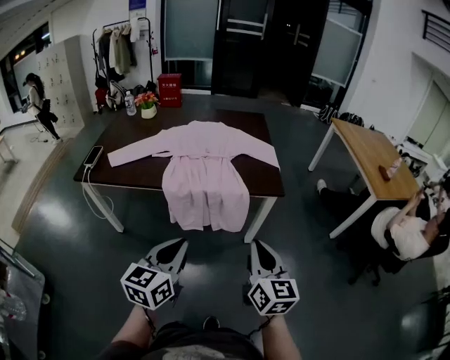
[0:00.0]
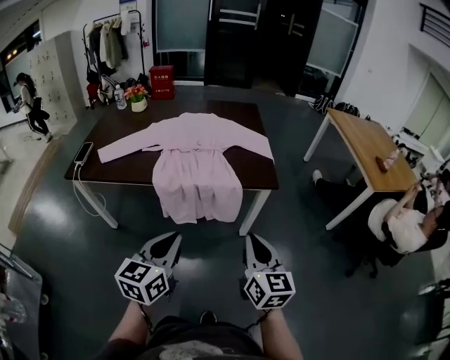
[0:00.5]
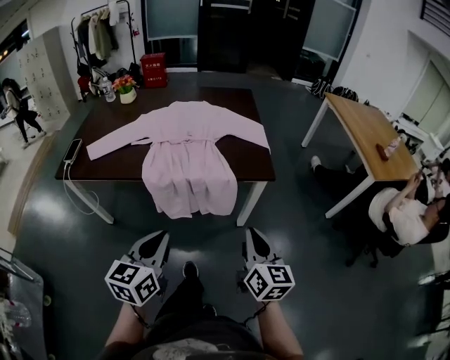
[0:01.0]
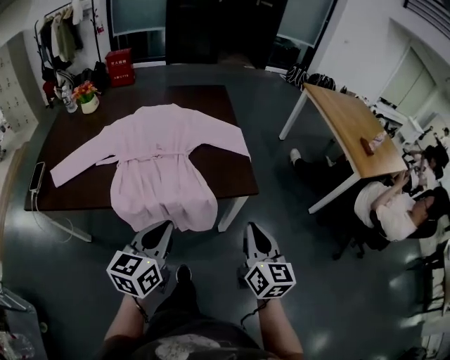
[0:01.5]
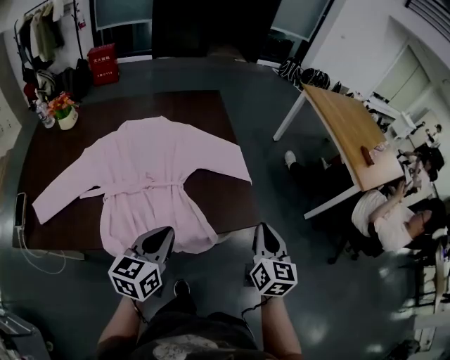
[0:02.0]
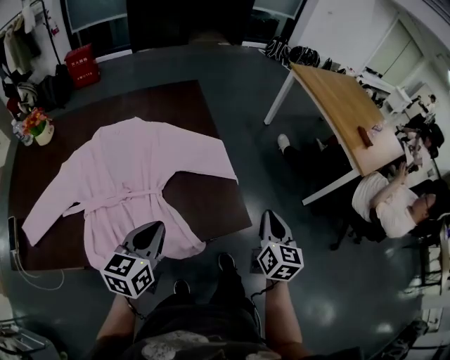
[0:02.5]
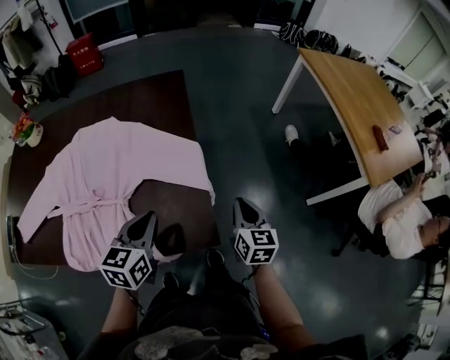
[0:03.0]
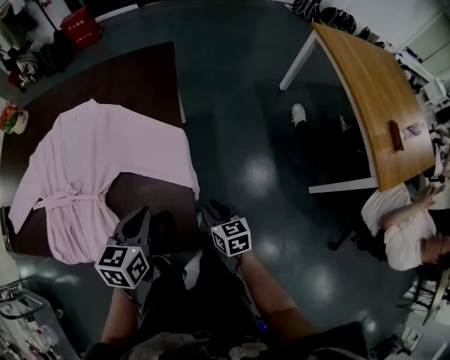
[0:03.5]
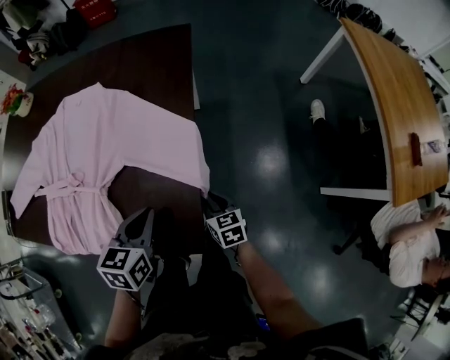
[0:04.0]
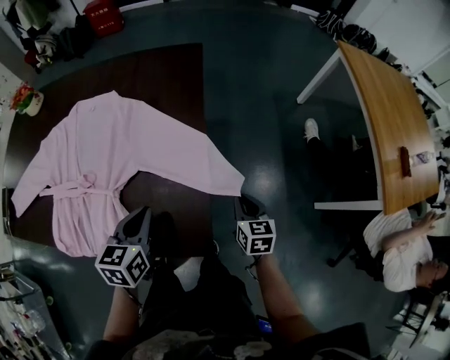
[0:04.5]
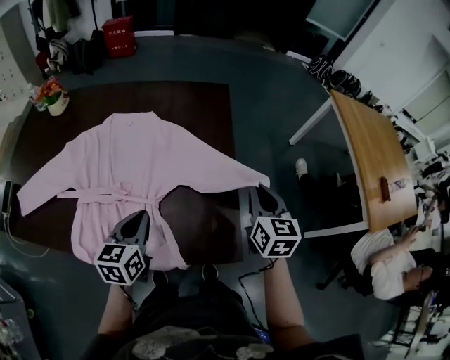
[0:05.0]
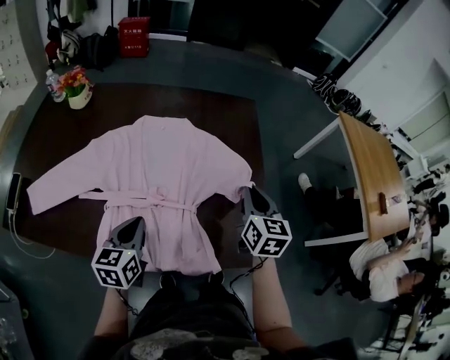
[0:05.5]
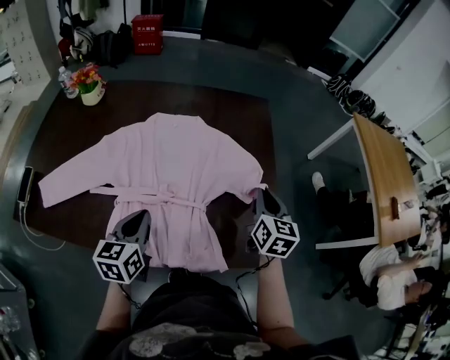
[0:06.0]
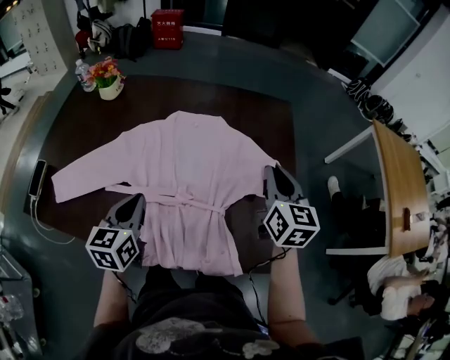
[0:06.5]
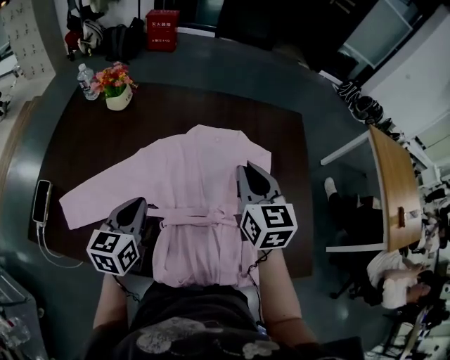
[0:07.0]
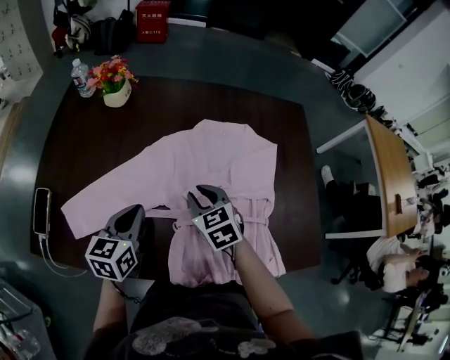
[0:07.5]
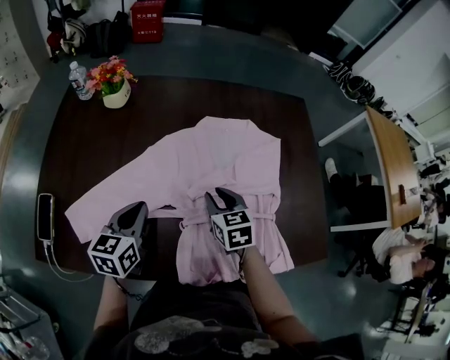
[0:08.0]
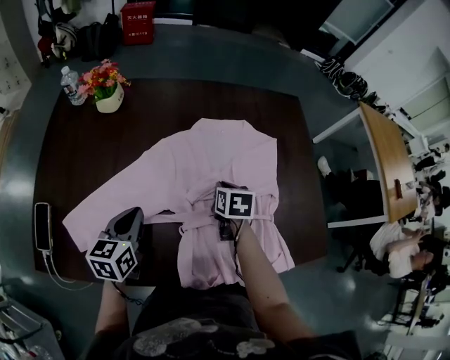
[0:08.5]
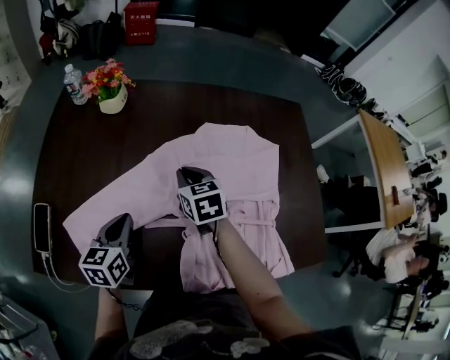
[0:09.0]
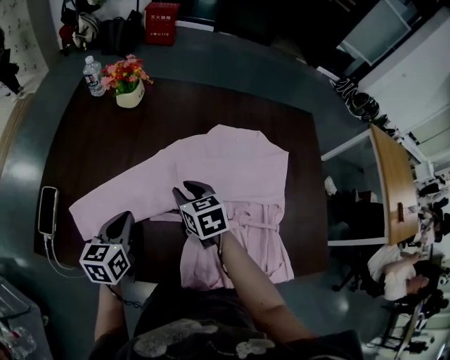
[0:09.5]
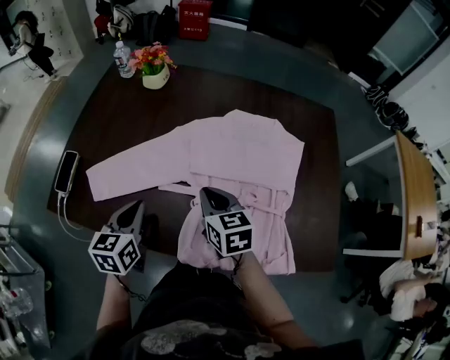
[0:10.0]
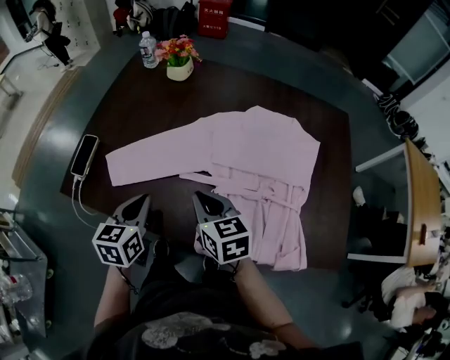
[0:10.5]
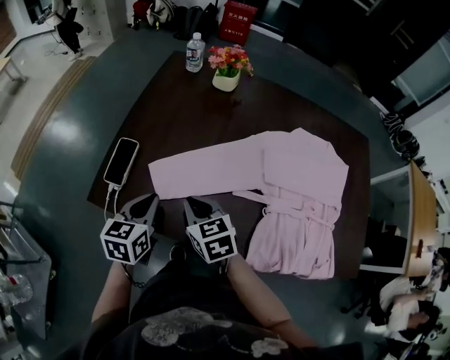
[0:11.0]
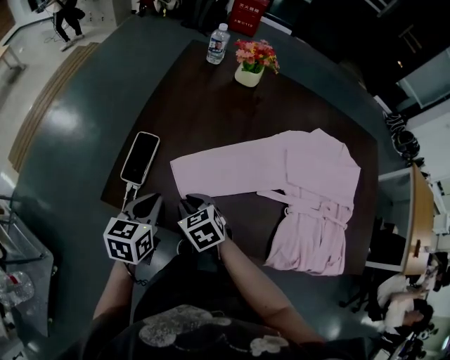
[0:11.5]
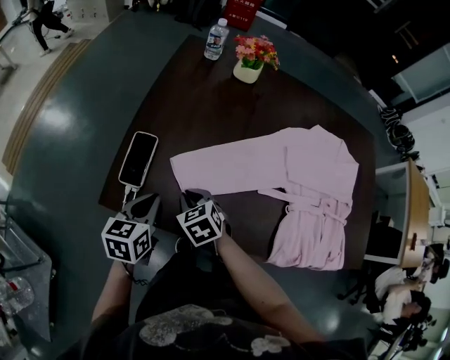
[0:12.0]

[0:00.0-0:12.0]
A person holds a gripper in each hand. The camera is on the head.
0:00.0 to 0:02.0: Both grippers move forward, approximately 35 cm. The right gripper swivels roughly 20 degrees.
0:02.0 to 0:04.0: The right gripper travels downward by roughly 30 cm, changes its angle by about 50 degrees, and opens up. The left gripper shifts by roughly 30 cm, and turns by some 30 degrees.
0:04.0 to 0:06.0: The right gripper shifts some 30 cm upward and to the left, and rotates about 30 degrees. The left gripper travels to the left by about 35 cm.
0:06.0 to 0:08.0: The left gripper goes roughly 25 cm to the left. Meanwhile the right gripper heads to the left, covering approximately 35 cm, changes its angle by approximately 30 degrees, and opens up.
0:08.0 to 0:10.0: The right gripper moves left and right over approximately 20 cm, changing direction 2 times, and closes up. Meanwhile the left gripper is displaced backward by roughly 10 cm.
0:10.0 to 0:12.0: Both grippers travel together to the left, about 35 cm. The right gripper swivels approximately 30 degrees.

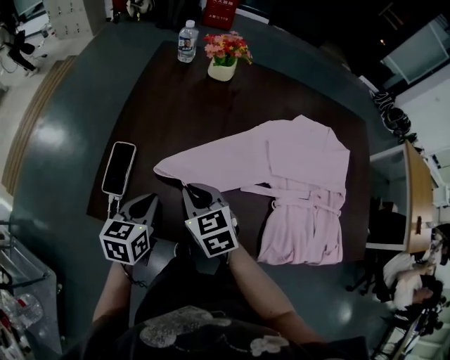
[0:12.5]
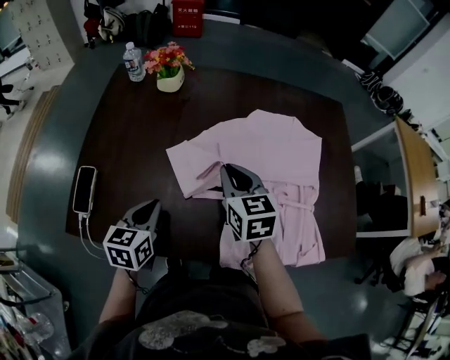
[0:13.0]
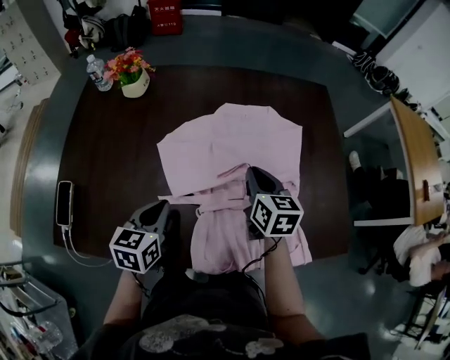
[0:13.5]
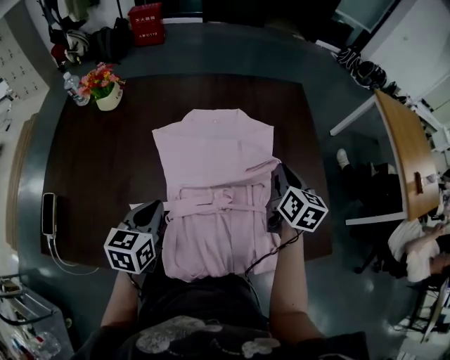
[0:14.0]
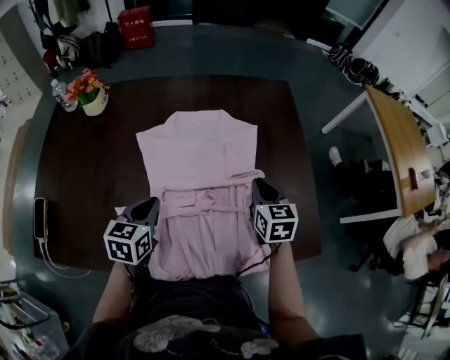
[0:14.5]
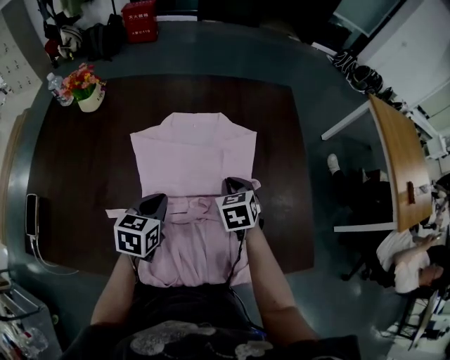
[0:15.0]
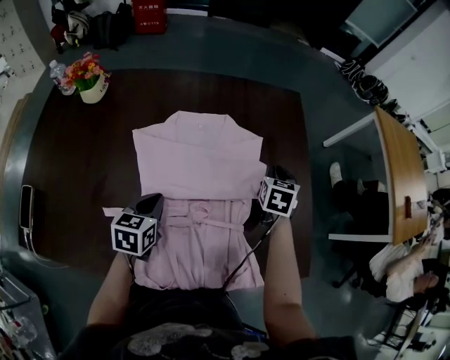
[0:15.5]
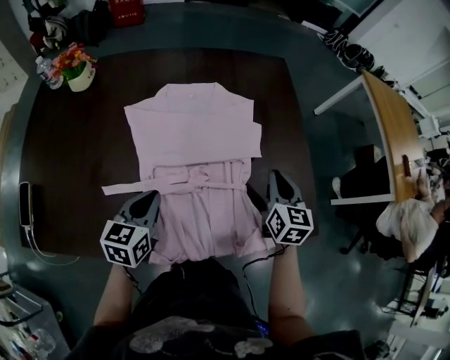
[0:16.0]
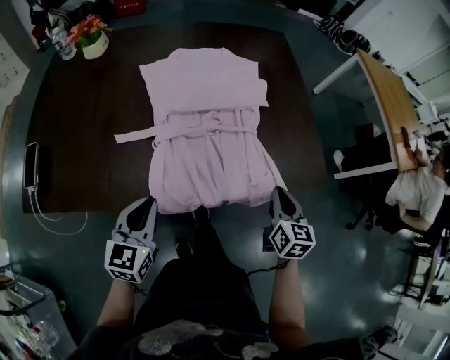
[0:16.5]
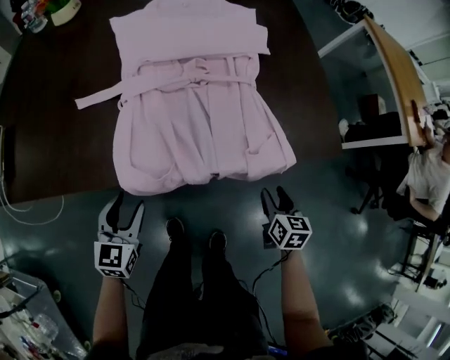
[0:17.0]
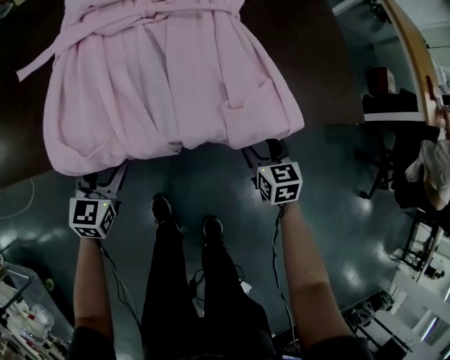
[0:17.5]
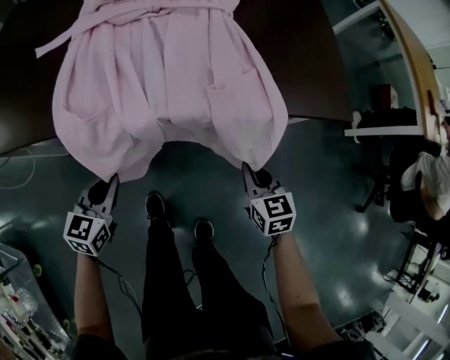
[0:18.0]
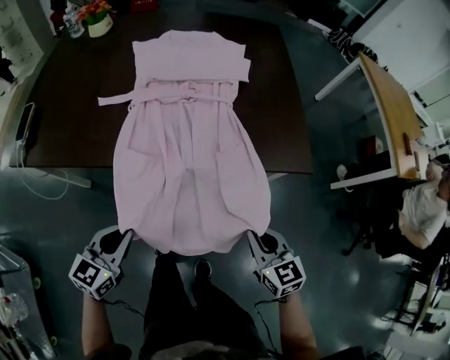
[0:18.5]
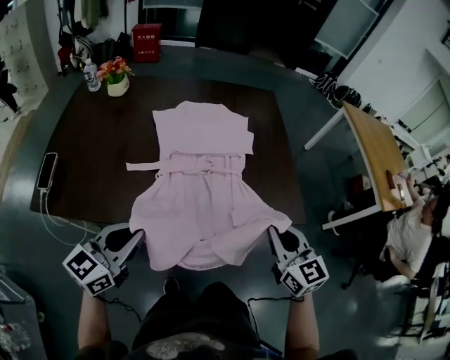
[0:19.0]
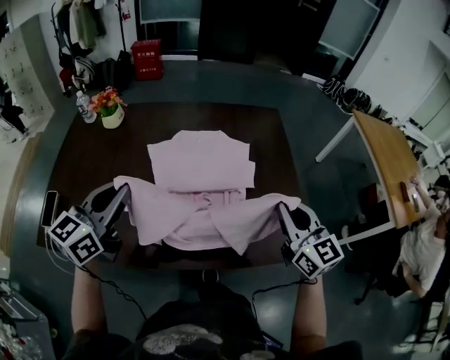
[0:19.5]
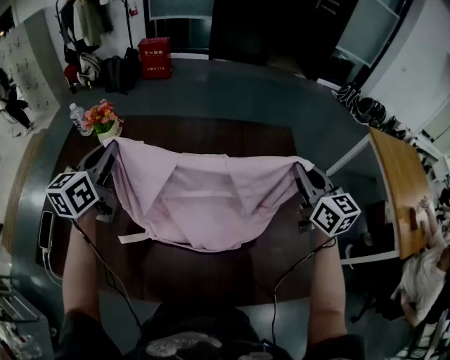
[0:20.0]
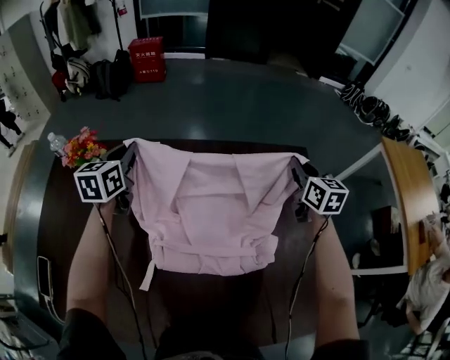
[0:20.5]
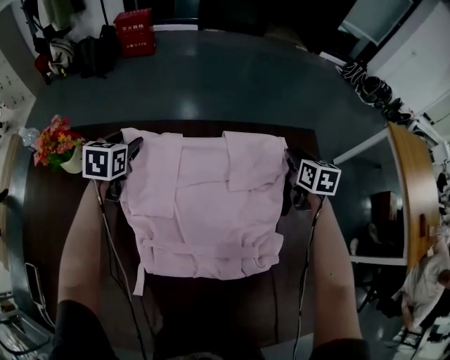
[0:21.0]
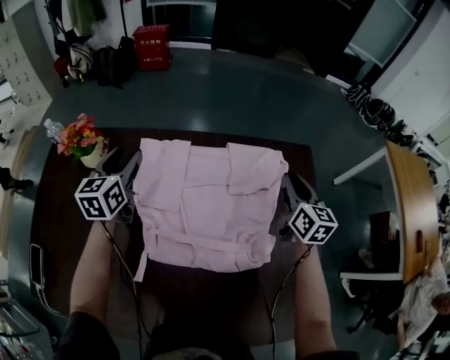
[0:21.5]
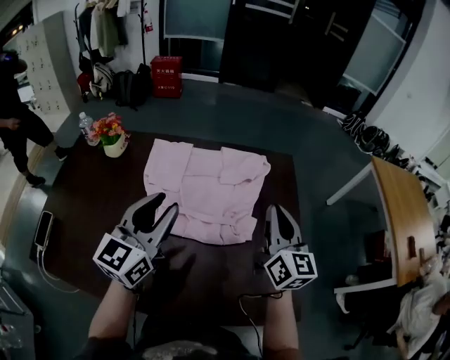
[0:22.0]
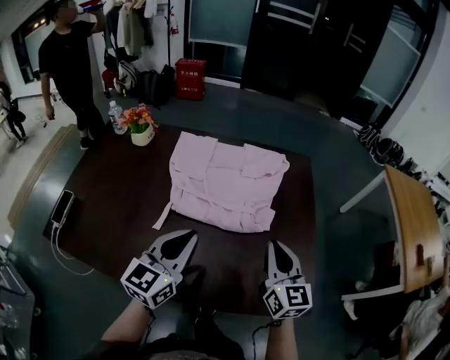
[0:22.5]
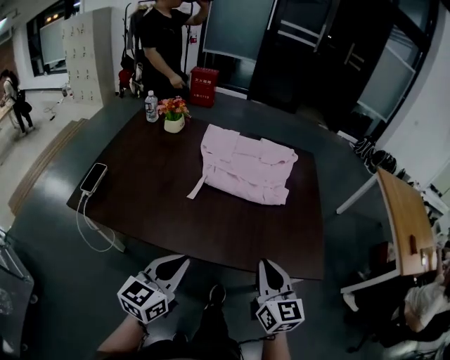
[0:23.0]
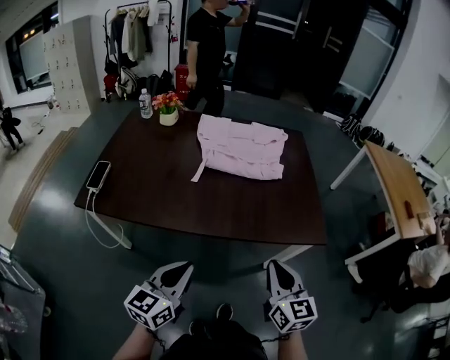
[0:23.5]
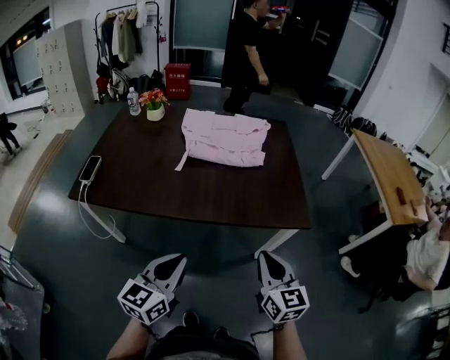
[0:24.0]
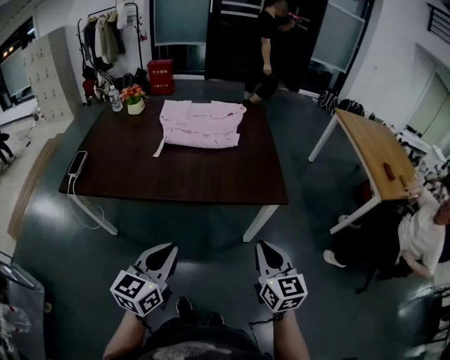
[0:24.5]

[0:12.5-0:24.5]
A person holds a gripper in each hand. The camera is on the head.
0:12.5 to 0:14.5: The pair of grippers is taken about 50 cm. The right gripper changes its angle by some 40 degrees.
0:14.5 to 0:16.5: The grippers both shift backward by about 25 cm.
0:16.5 to 0:18.5: The right gripper moves backward, roughly 20 cm, reaches about 30 cm downward, then returns, changes its angle by approximately 30 degrees, and opens, then closes once more. Meanwhile the left gripper travels backward and to the right by roughly 20 cm, moves roughly 25 cm downward and comes back, and opens and closes again.
0:18.5 to 0:20.5: The two grippers travel together, forward, about 80 cm. The left gripper swivels roughly 20 degrees. Meanwhile the right gripper swivels about 20 degrees.
0:20.5 to 0:22.5: Both grippers are carried backward, about 40 cm. The left gripper opens, then closes once more. The right gripper opens and closes again.
0:22.5 to 0:24.5: The pair of grippers is taken backward, approximately 50 cm.

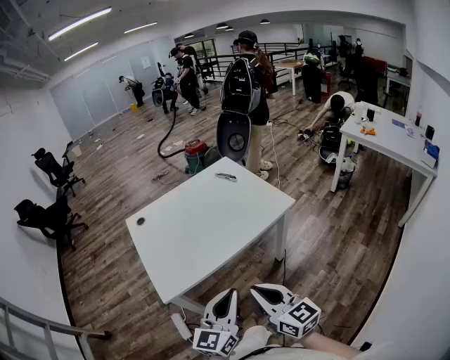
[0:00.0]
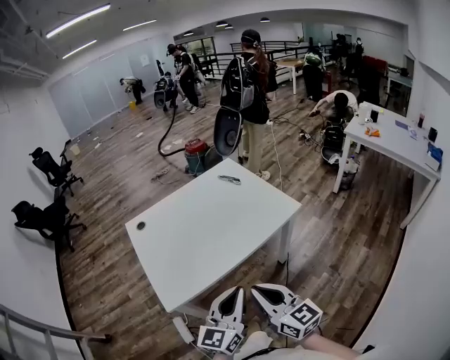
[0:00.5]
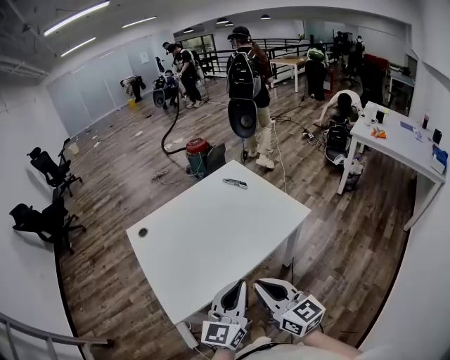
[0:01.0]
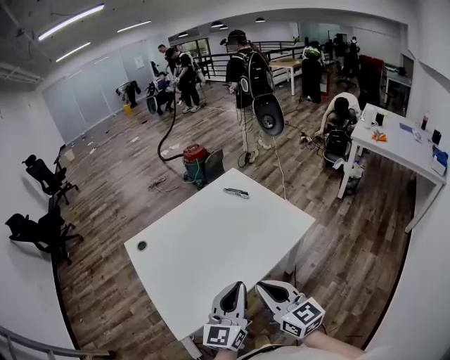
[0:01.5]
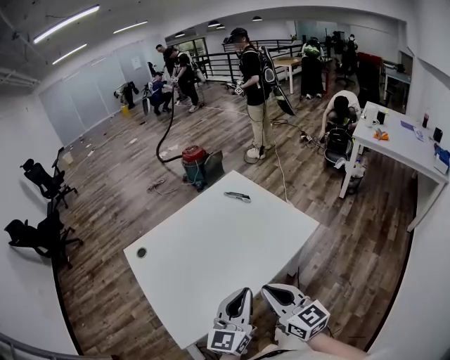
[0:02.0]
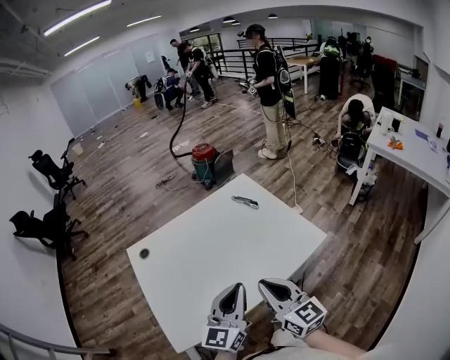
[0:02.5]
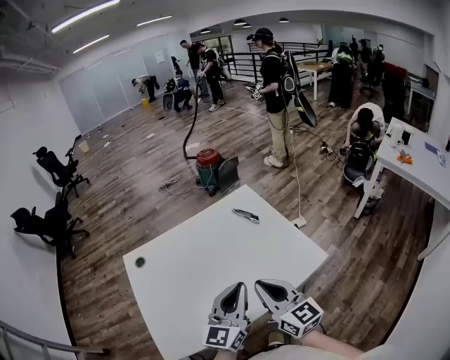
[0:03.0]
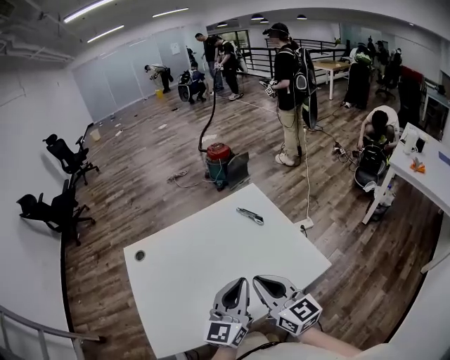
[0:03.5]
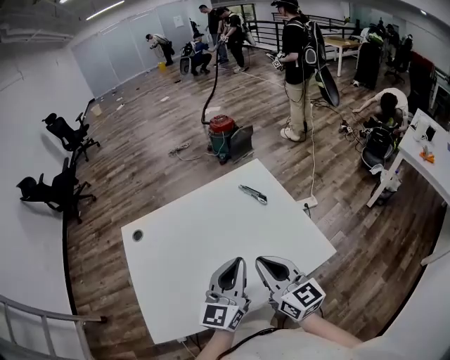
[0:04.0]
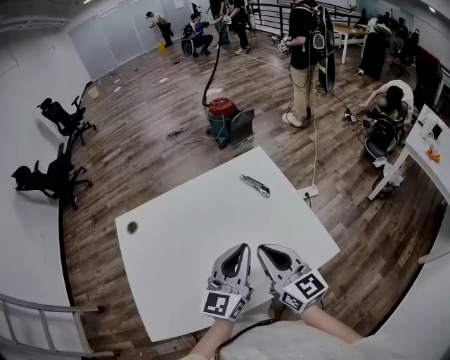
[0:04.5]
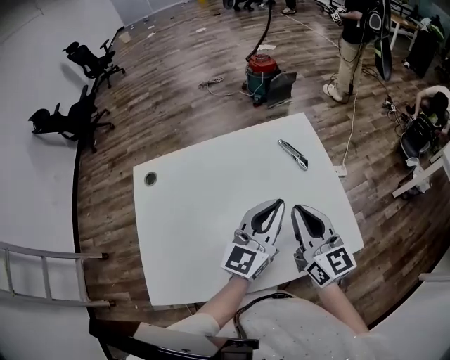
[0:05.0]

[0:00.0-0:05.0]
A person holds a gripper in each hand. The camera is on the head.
0:00.0 to 0:02.5: Both grippers move forward, approximately 25 cm.
0:02.5 to 0:05.0: The grippers both shift forward by approximately 25 cm.
